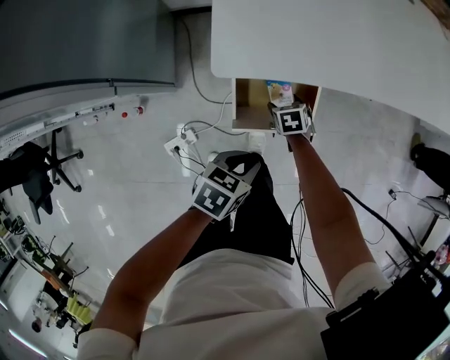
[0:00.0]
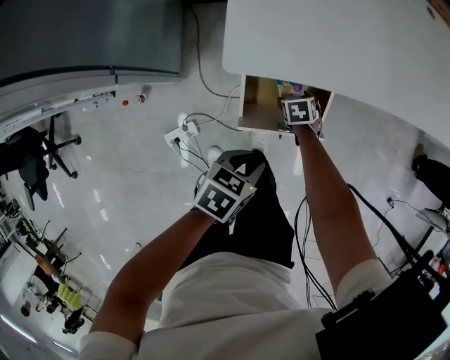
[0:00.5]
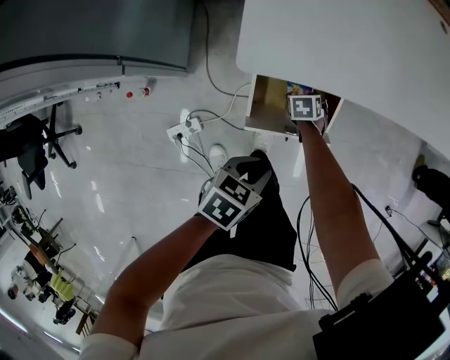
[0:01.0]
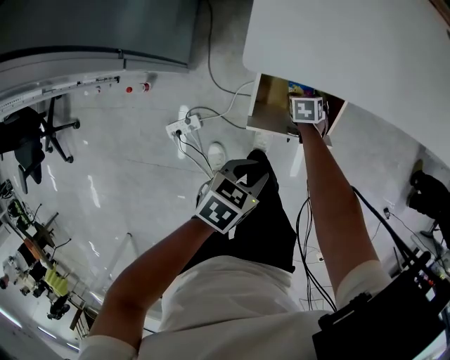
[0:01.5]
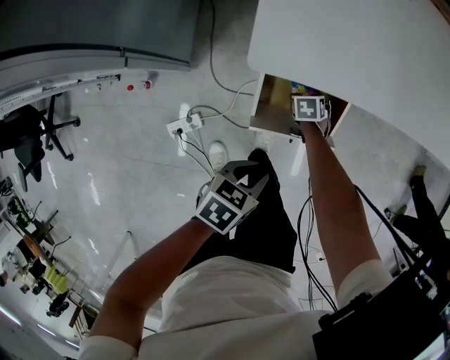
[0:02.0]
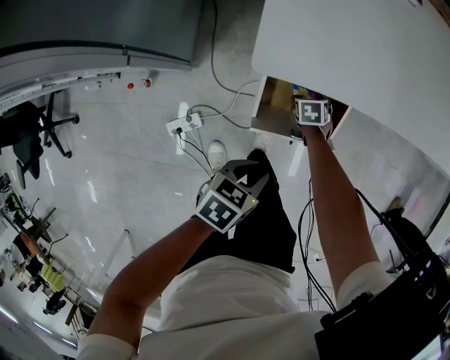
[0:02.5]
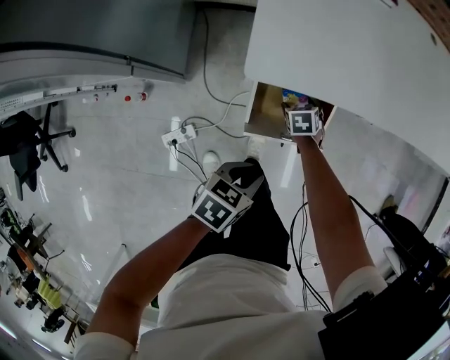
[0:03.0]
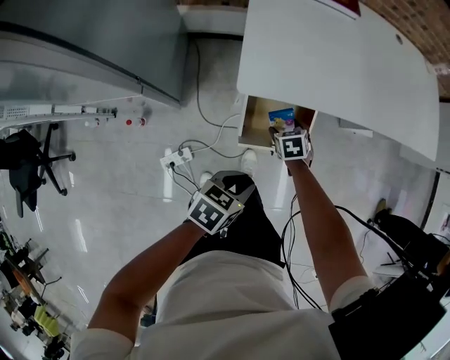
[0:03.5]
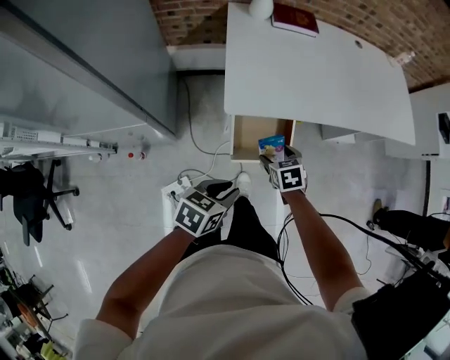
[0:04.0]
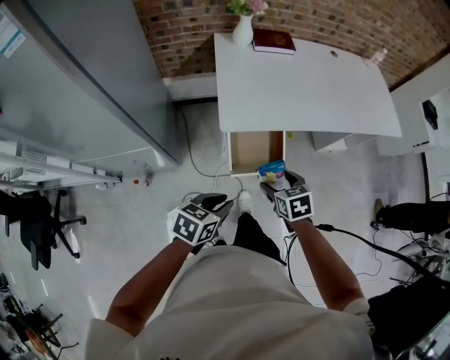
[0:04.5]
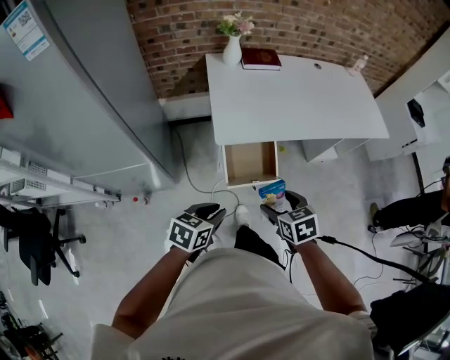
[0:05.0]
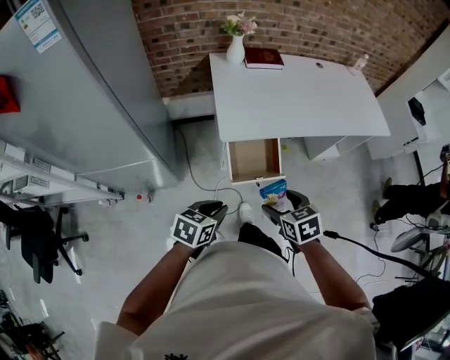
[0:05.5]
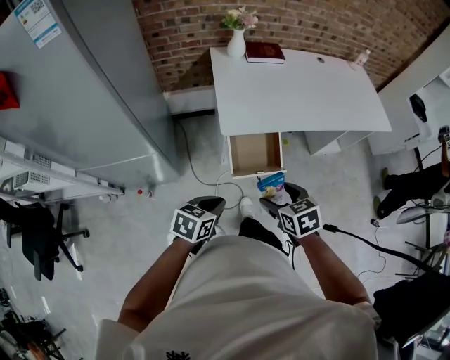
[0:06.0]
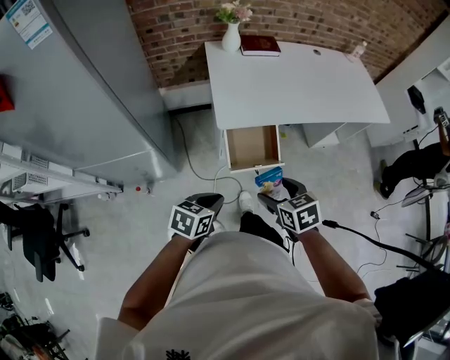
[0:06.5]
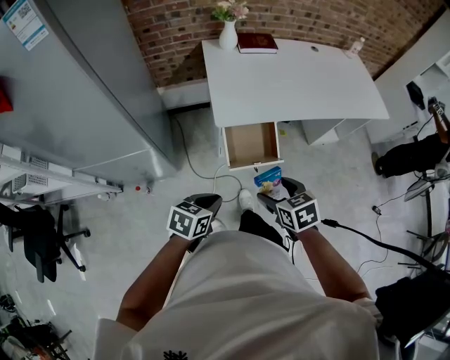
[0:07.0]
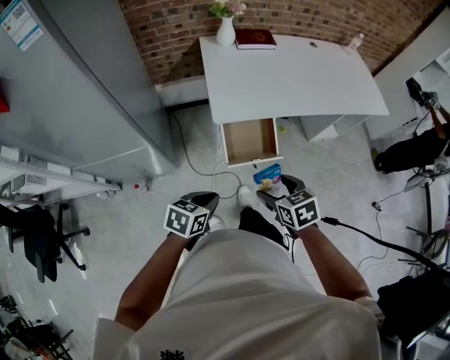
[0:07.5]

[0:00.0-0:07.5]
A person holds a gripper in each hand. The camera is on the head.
0:00.0 to 0:02.0: The left gripper changes place by about 5 cm, while the right gripper goes about 10 cm downward.
0:02.0 to 0:04.0: The left gripper is displaced upward by about 25 cm. Meanwhile the right gripper shifts roughly 40 cm upward.
0:04.0 to 0:05.5: The right gripper heads backward and upward, covering approximately 30 cm, while the left gripper heads backward and upward, covering roughly 10 cm.
0:05.5 to 0:07.5: The grippers move only a little.

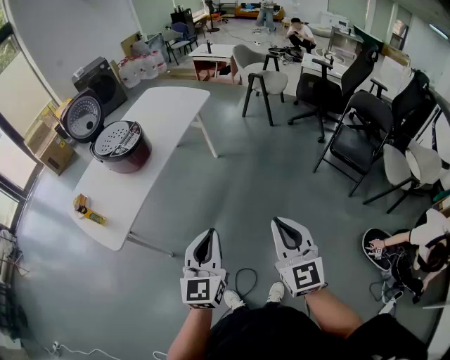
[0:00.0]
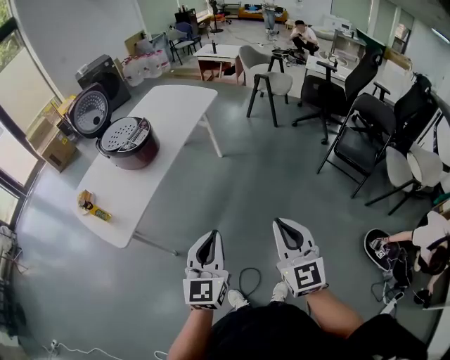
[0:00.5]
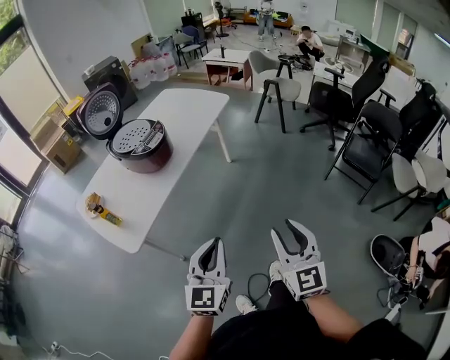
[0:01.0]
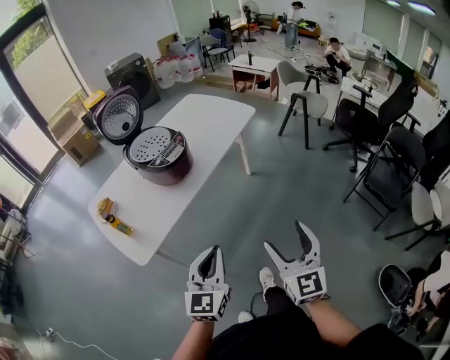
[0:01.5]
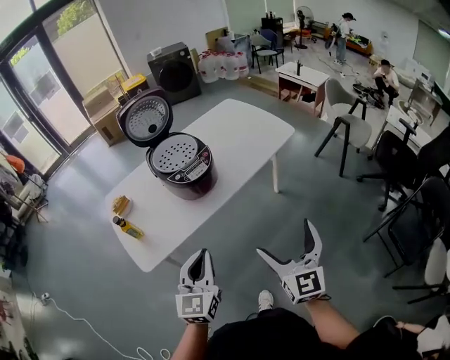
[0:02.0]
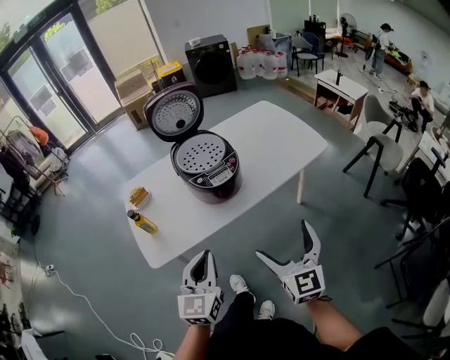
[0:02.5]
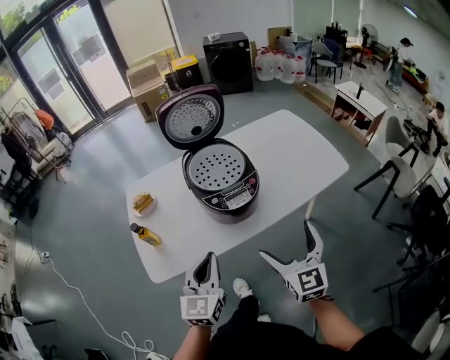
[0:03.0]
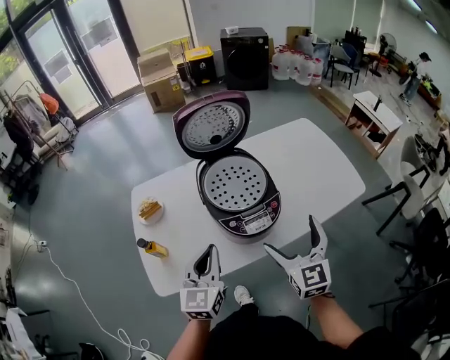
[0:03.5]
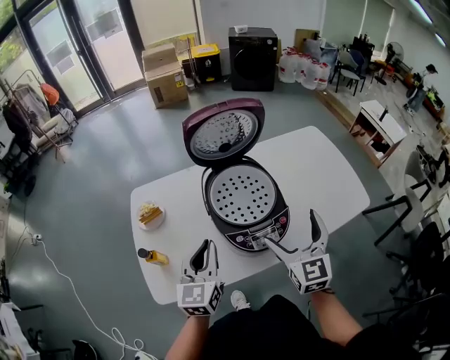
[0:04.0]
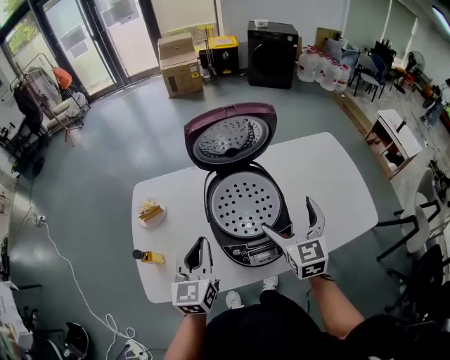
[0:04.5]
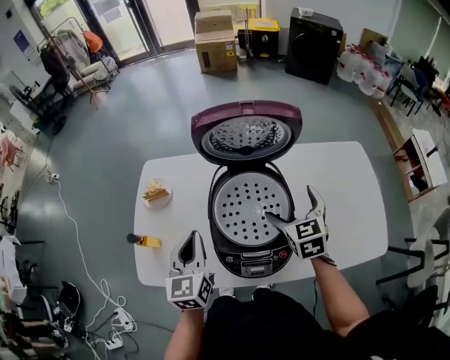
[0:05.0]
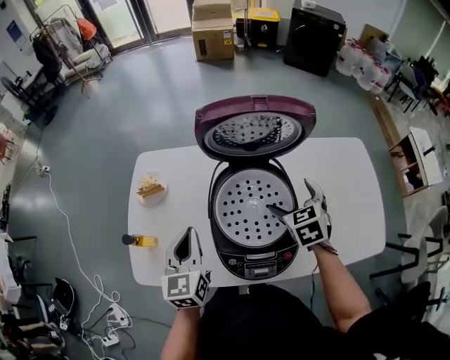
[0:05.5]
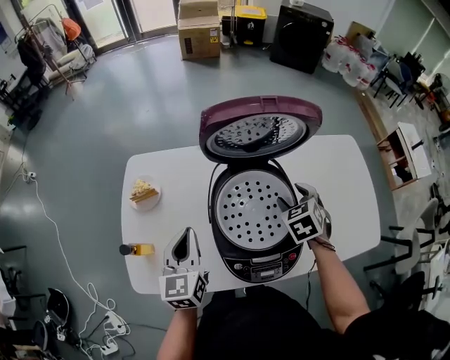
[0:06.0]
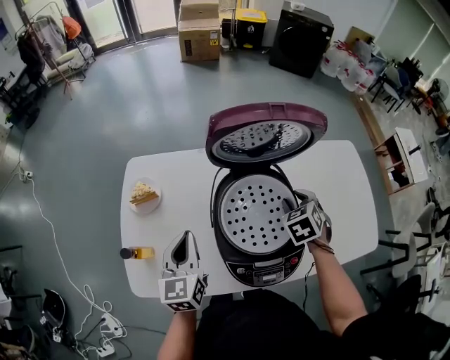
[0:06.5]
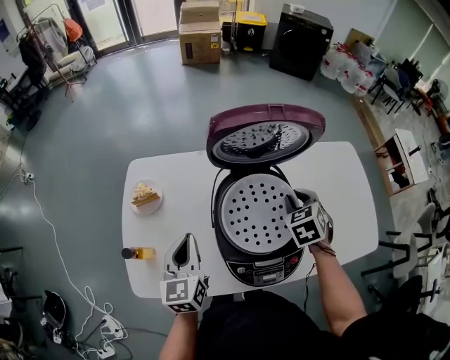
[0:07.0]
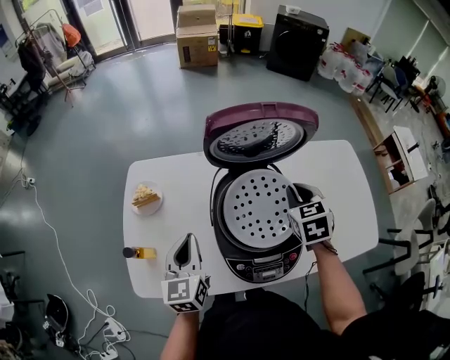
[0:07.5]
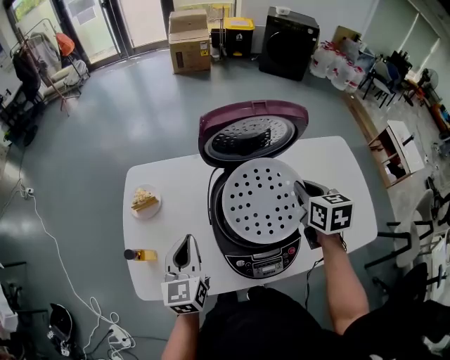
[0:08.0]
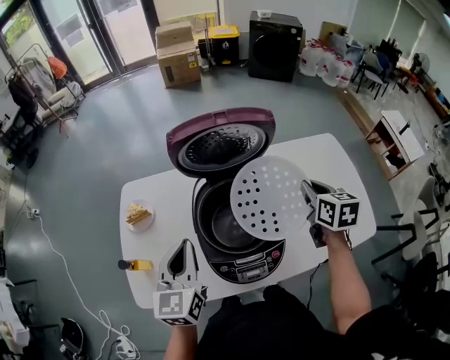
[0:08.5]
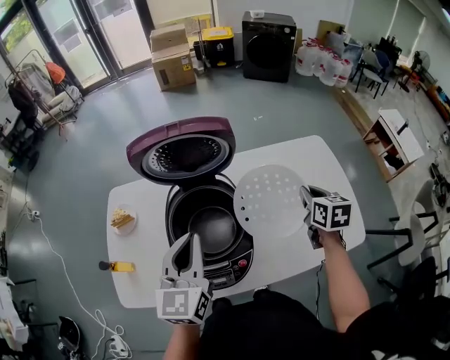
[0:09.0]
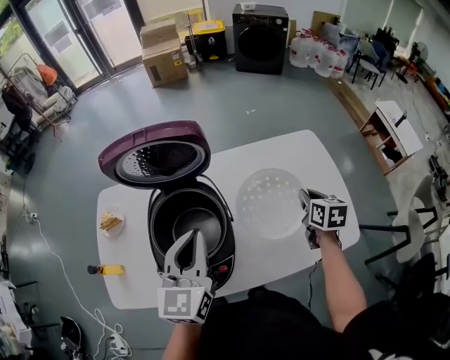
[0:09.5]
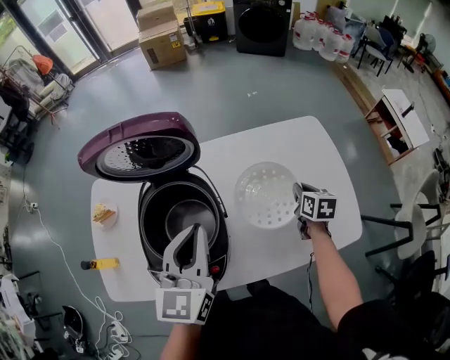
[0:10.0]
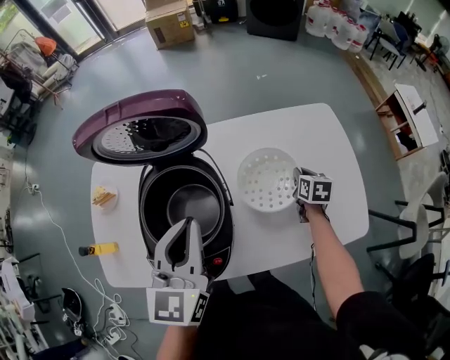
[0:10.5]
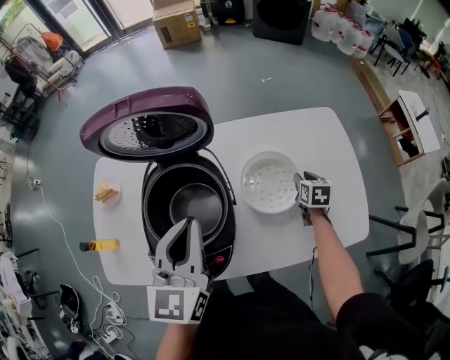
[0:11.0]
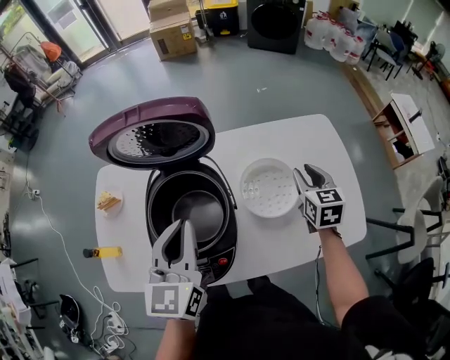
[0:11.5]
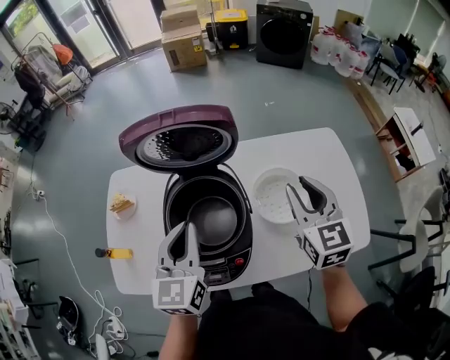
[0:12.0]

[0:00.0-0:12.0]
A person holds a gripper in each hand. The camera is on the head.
0:00.0 to 0:02.0: The grippers both shift forward and to the left by about 30 cm. The right gripper rotates about 20 degrees, and opens its fingers; the left gripper changes its angle by roughly 30 degrees.
0:02.0 to 0:04.0: The grippers both shift forward by roughly 35 cm. The right gripper turns by roughly 30 degrees. Meanwhile the left gripper rotates about 20 degrees.
0:04.0 to 0:06.0: The right gripper goes approximately 25 cm forward and downward, points its fingers roughly 40 degrees further downward, and closes, while the left gripper moves forward and downward, about 10 cm, and turns by approximately 20 degrees.
0:06.0 to 0:08.0: The right gripper heads upward, covering roughly 10 cm, swivels about 40 degrees, and closes its fingers.
0:08.0 to 0:10.0: The right gripper is displaced to the right and downward by approximately 35 cm. The left gripper travels to the right by roughly 30 cm.
0:10.0 to 0:12.0: The right gripper heads upward and to the left, covering about 30 cm, and rotates some 40 degrees; the left gripper heads to the left, covering approximately 10 cm.

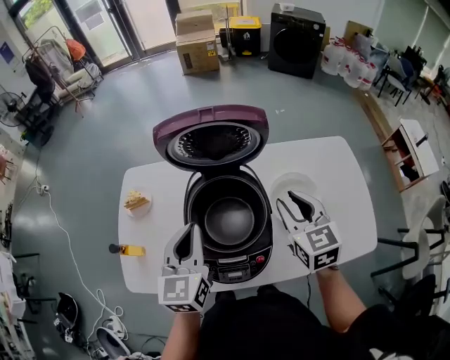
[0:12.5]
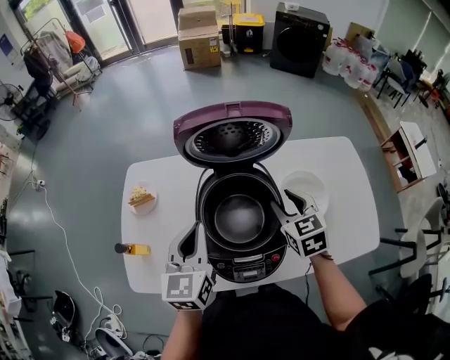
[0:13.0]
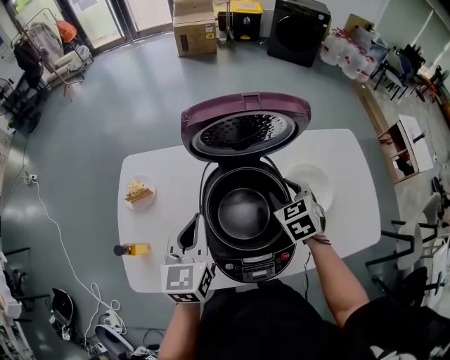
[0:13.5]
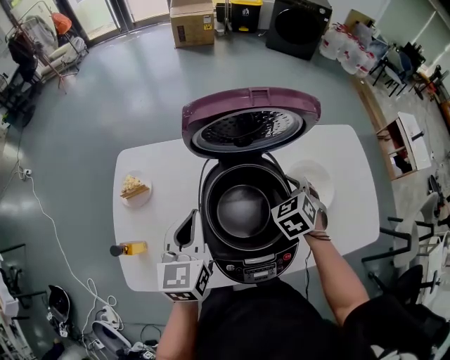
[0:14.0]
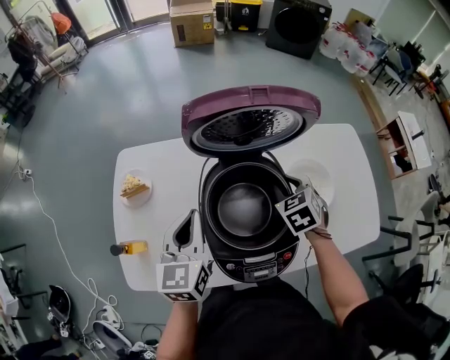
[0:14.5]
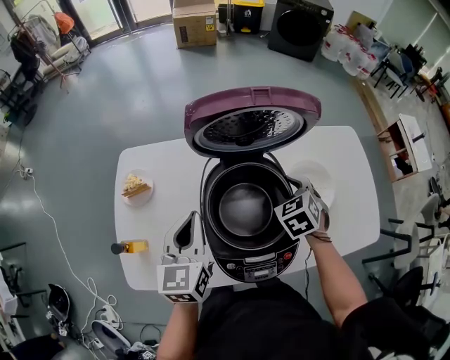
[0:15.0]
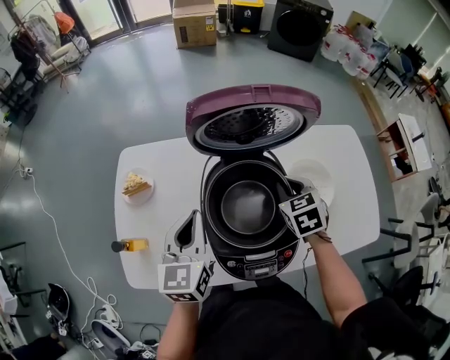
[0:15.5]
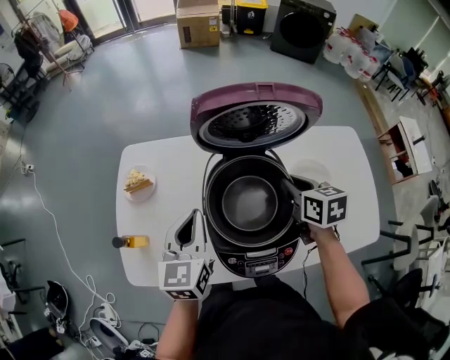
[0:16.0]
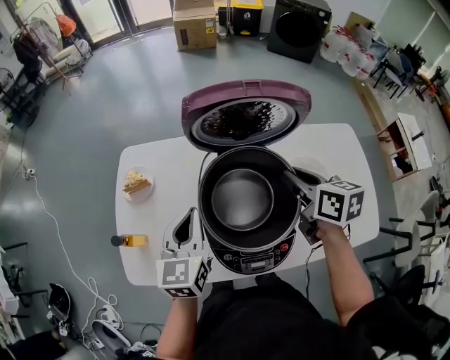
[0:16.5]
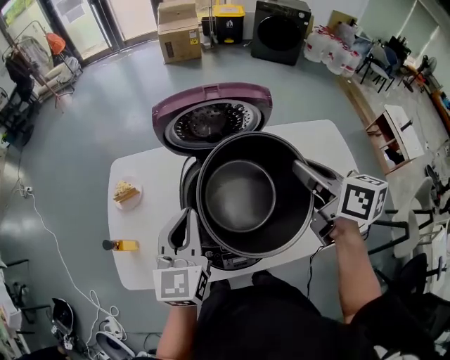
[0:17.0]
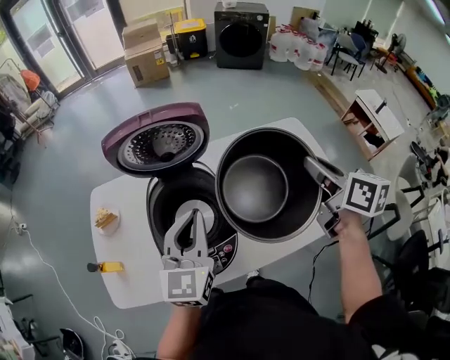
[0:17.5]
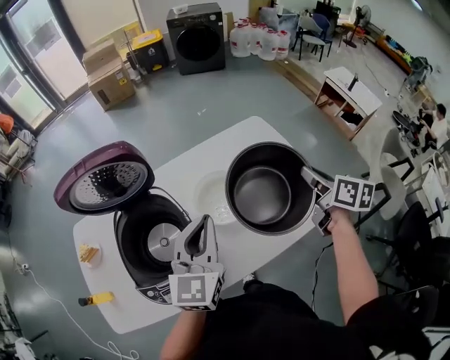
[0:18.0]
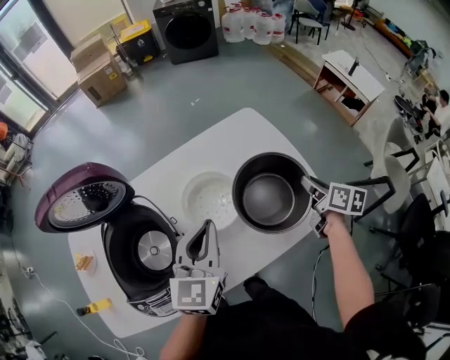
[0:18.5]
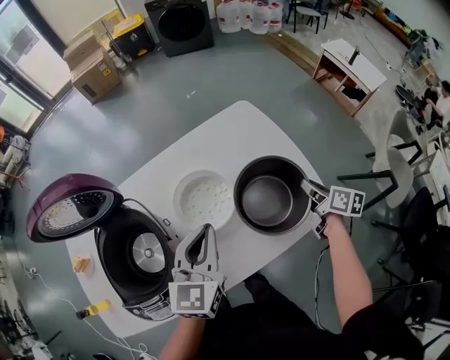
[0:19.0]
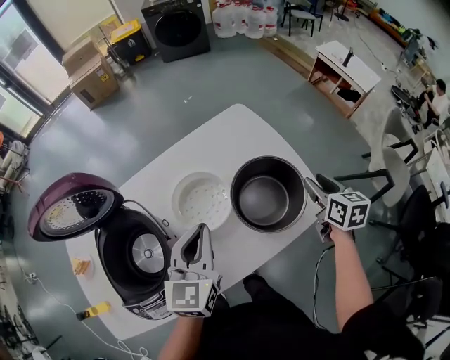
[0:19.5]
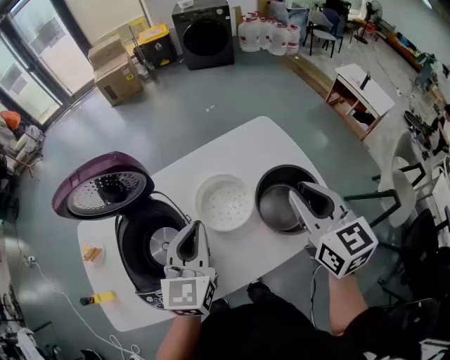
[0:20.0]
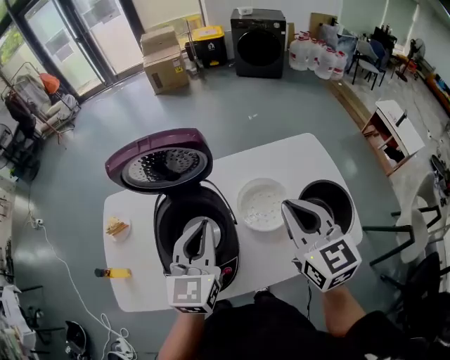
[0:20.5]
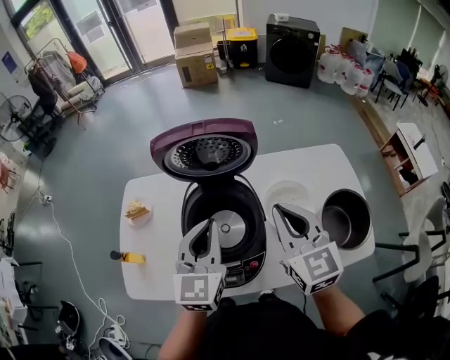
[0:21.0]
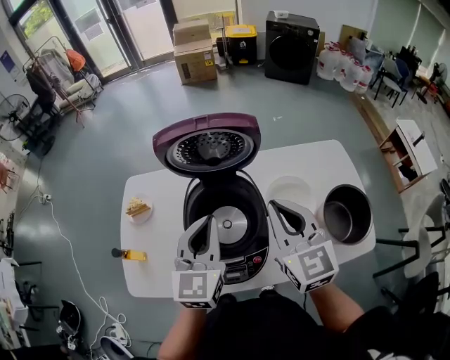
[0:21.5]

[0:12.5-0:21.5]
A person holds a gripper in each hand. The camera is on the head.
0:12.5 to 0:14.5: The right gripper moves downward, forward and to the left, some 15 cm, and turns by about 30 degrees, while the left gripper shifts roughly 10 cm to the left and downward.
0:14.5 to 0:17.0: The left gripper heads upward, covering about 5 cm, while the right gripper goes some 20 cm upward, and tips its fingers upward by approximately 30 degrees.
0:17.0 to 0:19.5: The left gripper shifts by roughly 35 cm, and changes its angle by some 30 degrees; the right gripper ends up about 50 cm from where it was, and swivels about 40 degrees.
0:19.5 to 0:21.5: The left gripper shifts by approximately 30 cm, and turns by approximately 30 degrees, while the right gripper shifts by about 50 cm, and changes its angle by roughly 50 degrees.
